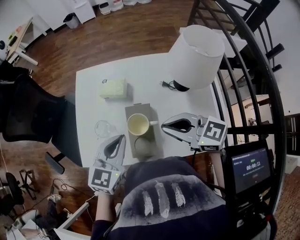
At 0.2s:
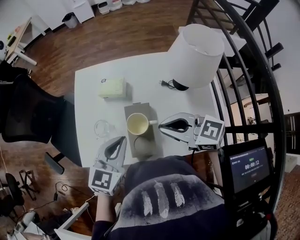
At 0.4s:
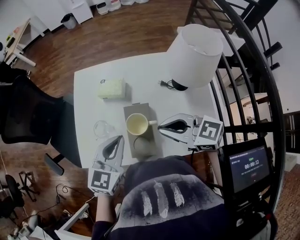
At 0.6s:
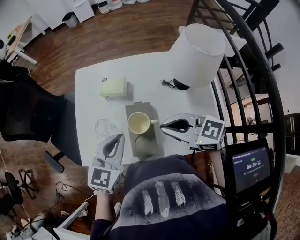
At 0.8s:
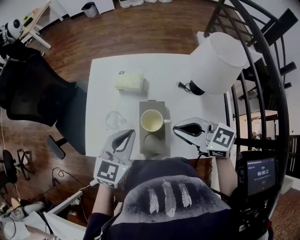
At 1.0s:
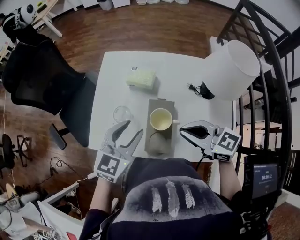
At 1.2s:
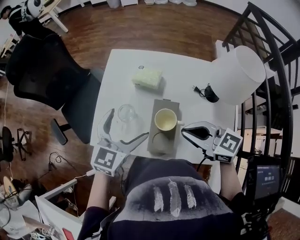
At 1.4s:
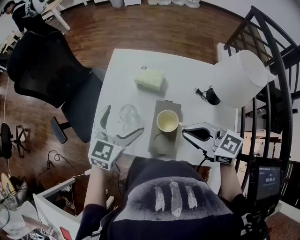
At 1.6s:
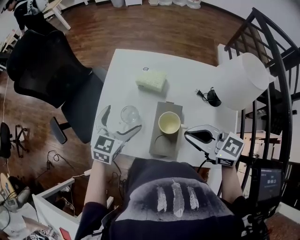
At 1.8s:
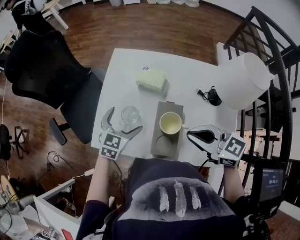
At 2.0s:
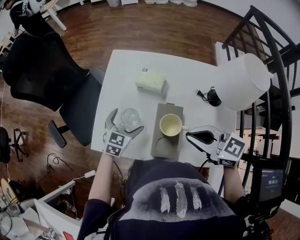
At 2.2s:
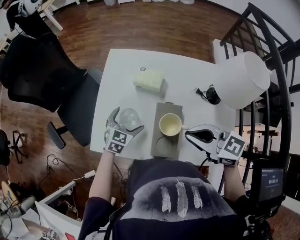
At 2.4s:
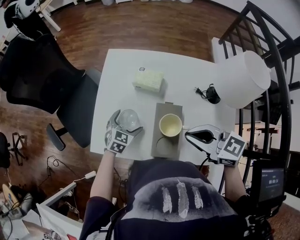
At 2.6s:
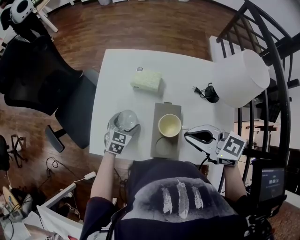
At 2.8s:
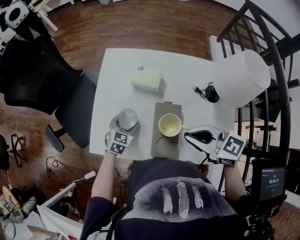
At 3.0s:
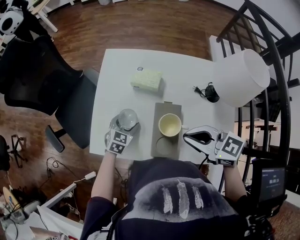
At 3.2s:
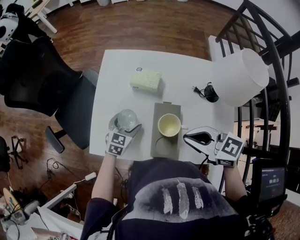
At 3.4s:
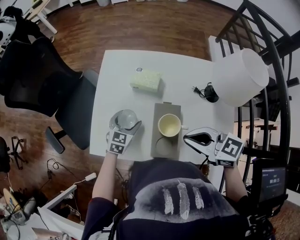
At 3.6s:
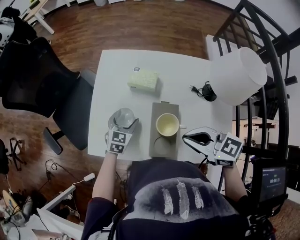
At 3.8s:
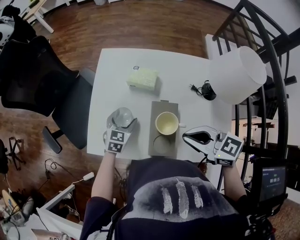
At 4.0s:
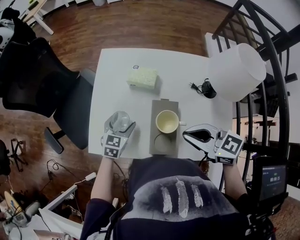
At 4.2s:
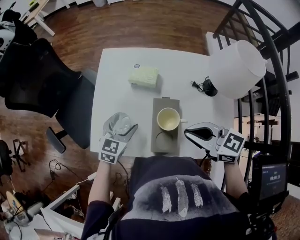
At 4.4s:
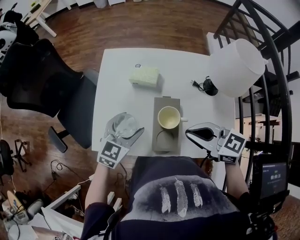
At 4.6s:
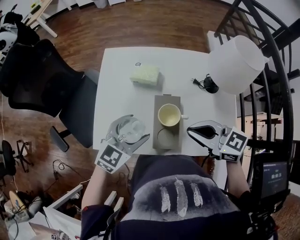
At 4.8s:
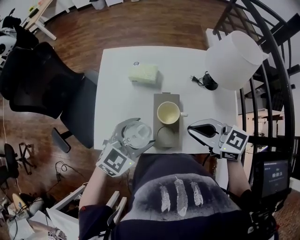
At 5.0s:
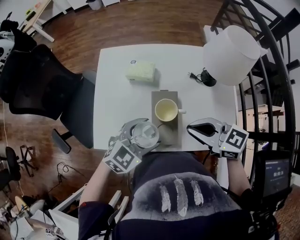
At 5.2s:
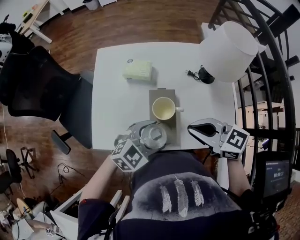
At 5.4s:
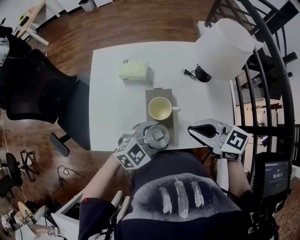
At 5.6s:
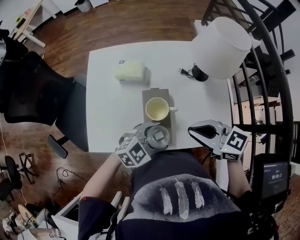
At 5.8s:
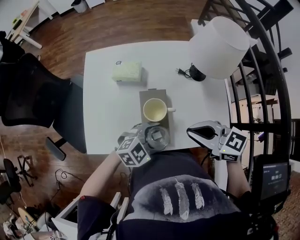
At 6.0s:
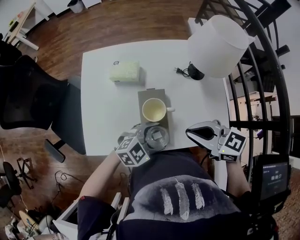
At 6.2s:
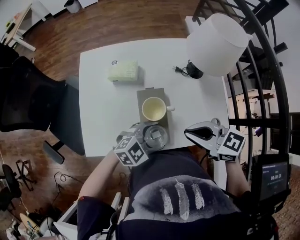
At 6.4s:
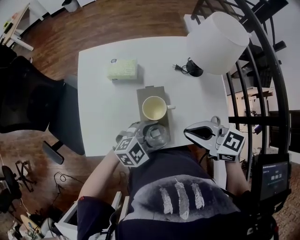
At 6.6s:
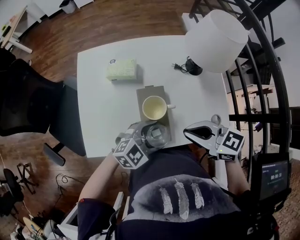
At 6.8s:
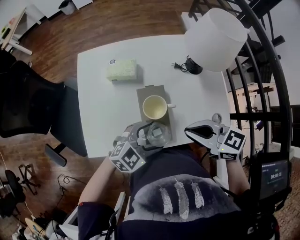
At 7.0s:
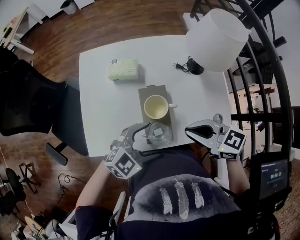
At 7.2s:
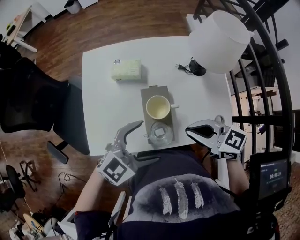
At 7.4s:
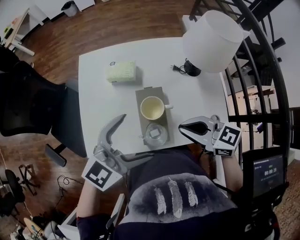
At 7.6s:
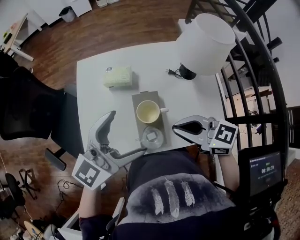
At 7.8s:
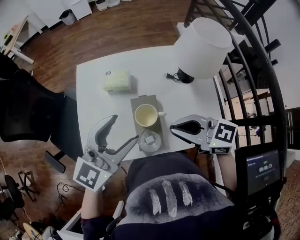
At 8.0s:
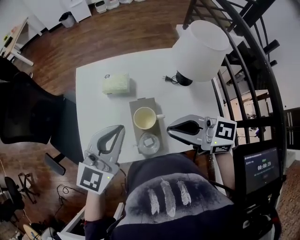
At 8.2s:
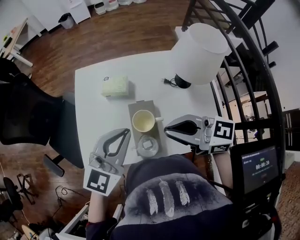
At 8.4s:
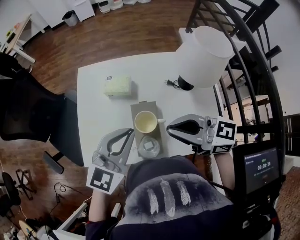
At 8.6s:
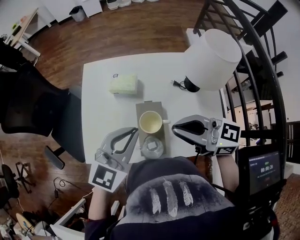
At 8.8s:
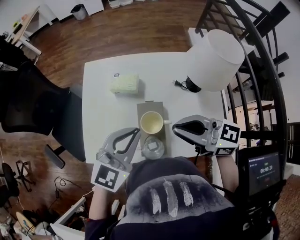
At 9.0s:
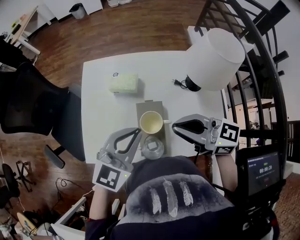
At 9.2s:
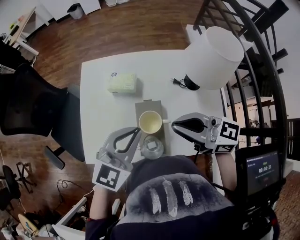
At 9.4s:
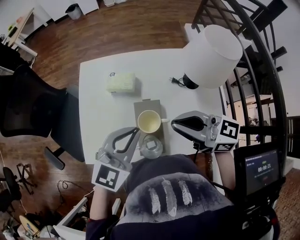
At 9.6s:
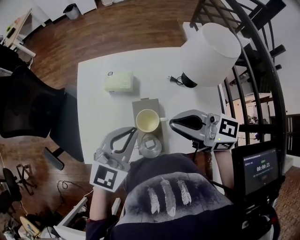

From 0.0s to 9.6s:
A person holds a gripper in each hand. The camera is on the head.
From 0.0s to 1.6s: The left gripper moves to the left, forward and downward, some 15 cm, and opens up.
From 1.6s to 3.2s: The left gripper heads downward, covering some 15 cm.
From 3.2s to 4.8s: The left gripper goes roughly 20 cm upward and backward, and rotates some 30 degrees.
From 4.8s to 6.4s: The left gripper goes approximately 10 cm downward, and swivels about 30 degrees.
From 6.4s to 8.0s: The right gripper goes approximately 10 cm upward; the left gripper shifts approximately 20 cm upward, rotates some 50 degrees, and closes.
From 8.0s to 9.6s: The grippers move only a little.

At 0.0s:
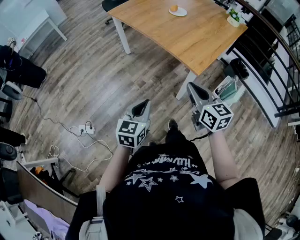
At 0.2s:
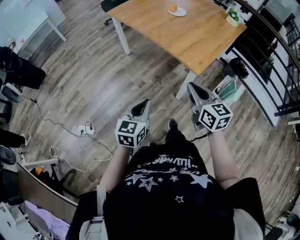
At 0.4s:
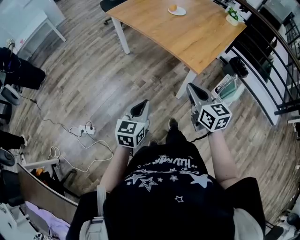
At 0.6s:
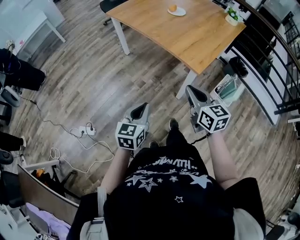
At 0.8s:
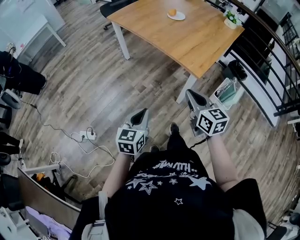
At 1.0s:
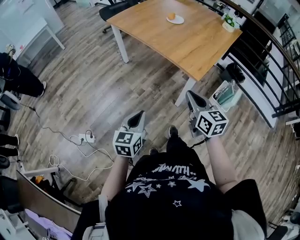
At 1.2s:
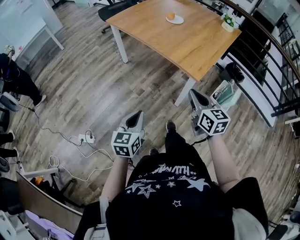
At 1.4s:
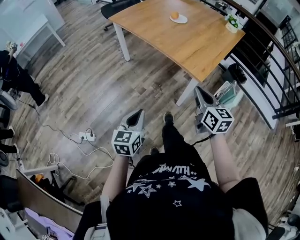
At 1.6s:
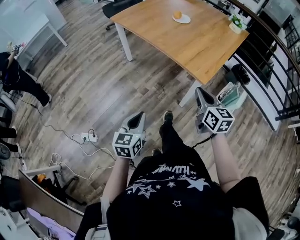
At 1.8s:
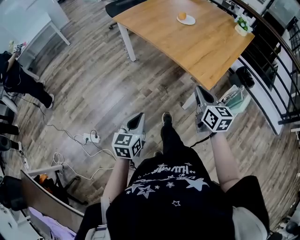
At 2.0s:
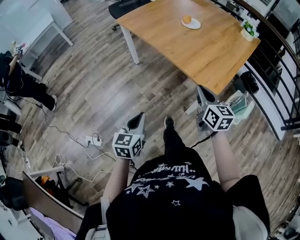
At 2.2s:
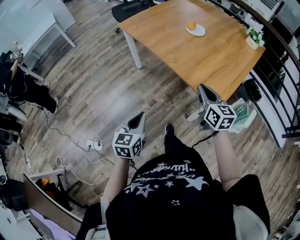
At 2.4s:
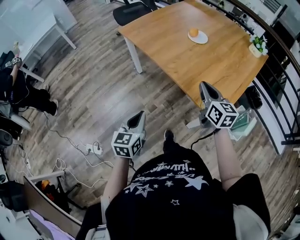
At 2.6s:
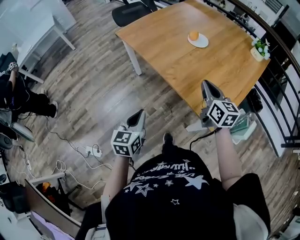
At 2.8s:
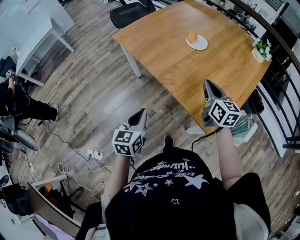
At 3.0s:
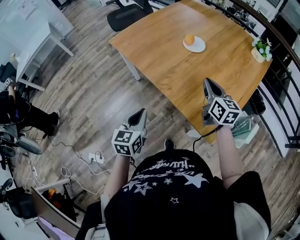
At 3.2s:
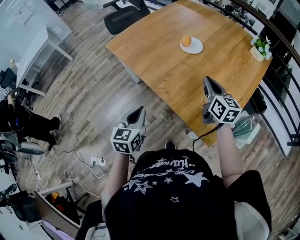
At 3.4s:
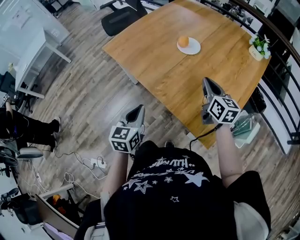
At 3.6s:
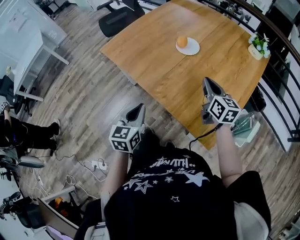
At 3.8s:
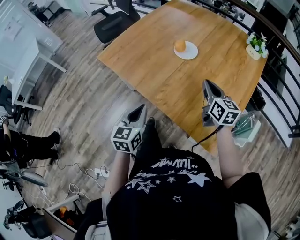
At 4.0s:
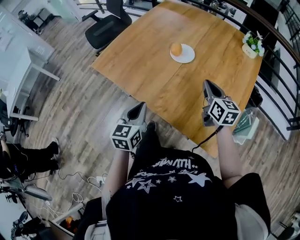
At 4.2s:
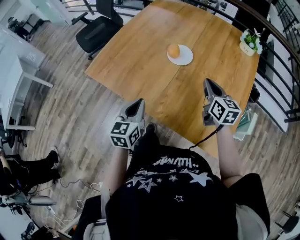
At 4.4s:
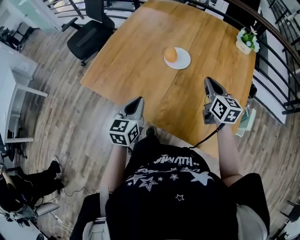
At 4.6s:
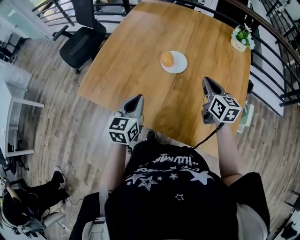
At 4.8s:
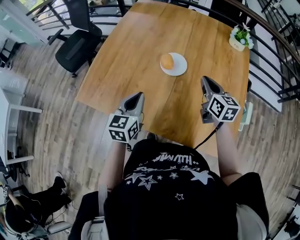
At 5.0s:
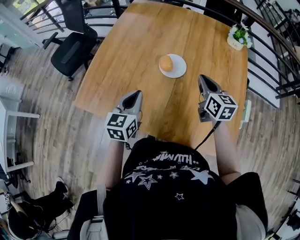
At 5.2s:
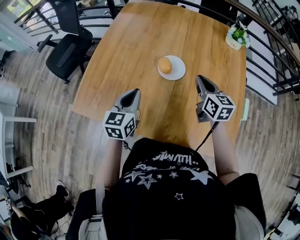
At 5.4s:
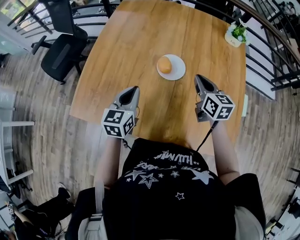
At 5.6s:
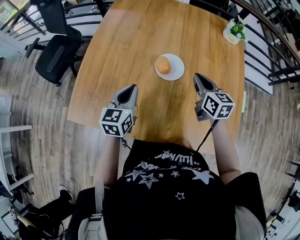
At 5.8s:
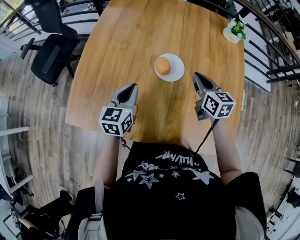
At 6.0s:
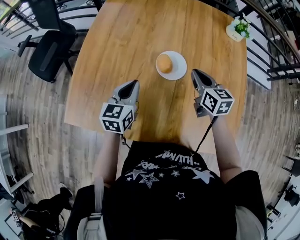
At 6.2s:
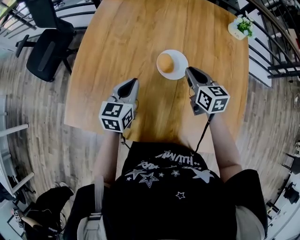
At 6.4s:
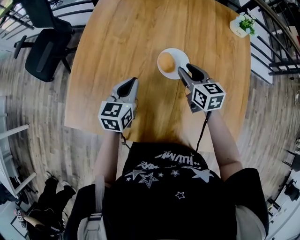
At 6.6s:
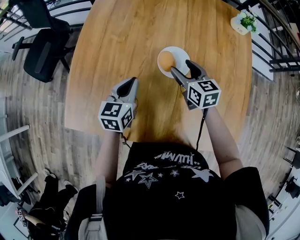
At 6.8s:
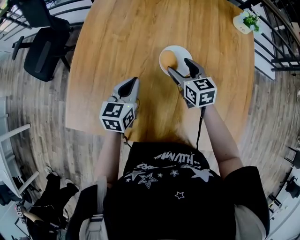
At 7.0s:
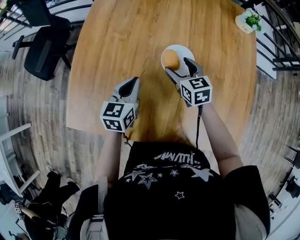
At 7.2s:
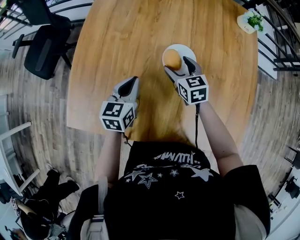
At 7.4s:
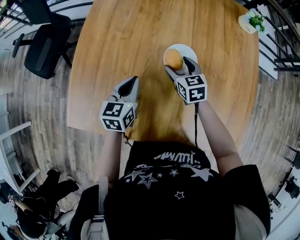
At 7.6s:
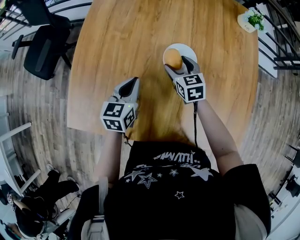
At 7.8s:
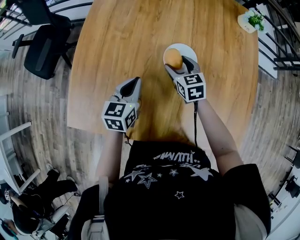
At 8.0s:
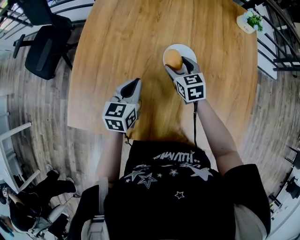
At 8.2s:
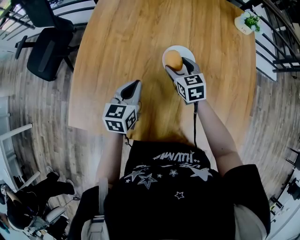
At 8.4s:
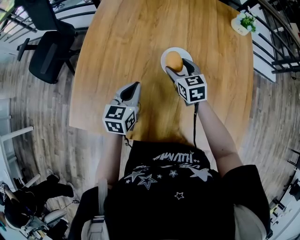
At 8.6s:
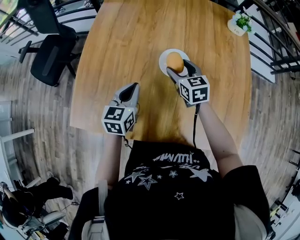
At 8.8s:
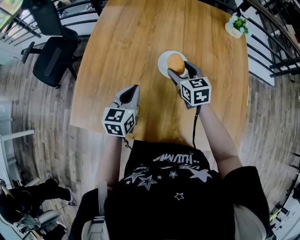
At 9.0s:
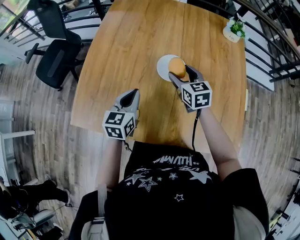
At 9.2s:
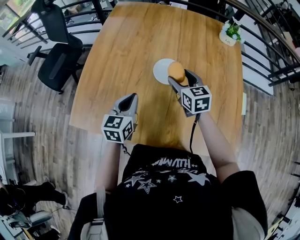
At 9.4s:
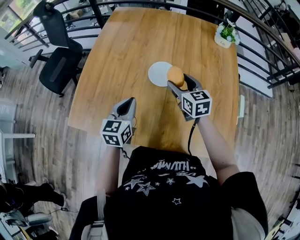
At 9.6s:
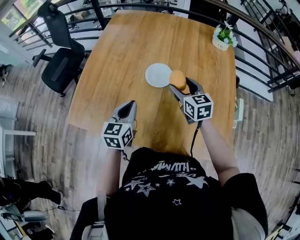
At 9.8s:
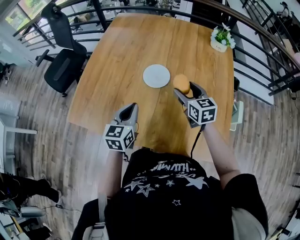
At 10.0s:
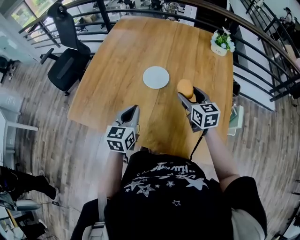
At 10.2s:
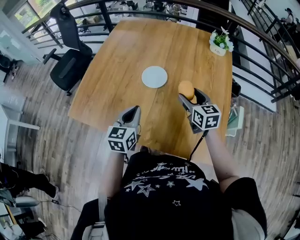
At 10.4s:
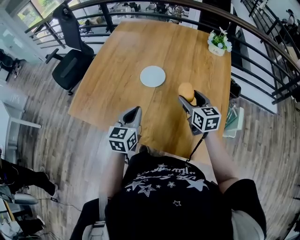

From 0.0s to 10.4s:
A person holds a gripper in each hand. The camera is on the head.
From 0.0s to 1.4s: The left gripper travels to the left by roughly 5 cm.
From 1.4s to 3.0s: The two grippers go about 35 cm forward.
From 3.0s to 4.4s: The right gripper travels forward by roughly 15 cm, and rotates roughly 20 degrees. Meanwhile the left gripper shifts some 25 cm forward, and changes its angle by approximately 20 degrees.
From 4.4s to 6.0s: The right gripper shifts roughly 15 cm forward and to the left. Meanwhile the left gripper is displaced forward by approximately 20 cm.
From 6.0s to 7.4s: The right gripper shifts some 15 cm downward and to the left, and opens up. The left gripper is displaced downward by about 5 cm.
From 7.4s to 9.0s: The left gripper is displaced backward and upward by about 10 cm. The right gripper goes roughly 10 cm upward.
From 9.0s to 10.4s: Both grippers move to the right and backward, roughly 20 cm.

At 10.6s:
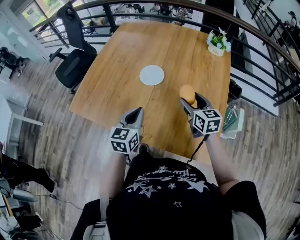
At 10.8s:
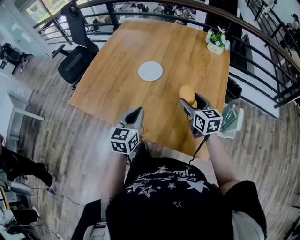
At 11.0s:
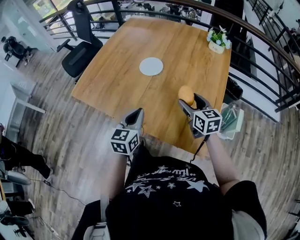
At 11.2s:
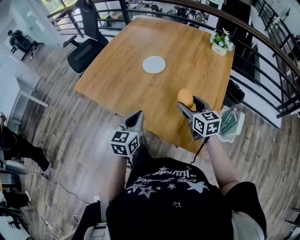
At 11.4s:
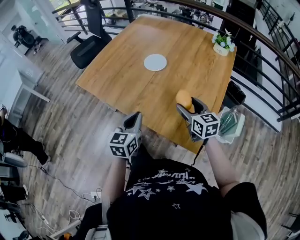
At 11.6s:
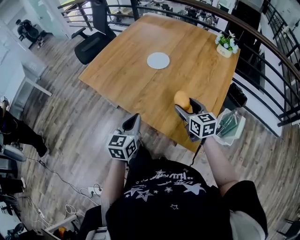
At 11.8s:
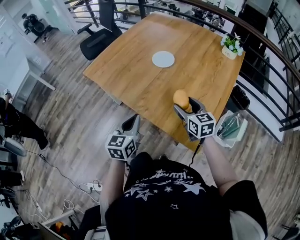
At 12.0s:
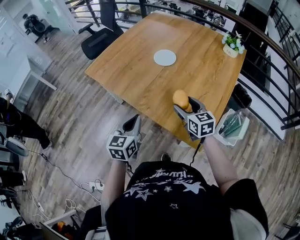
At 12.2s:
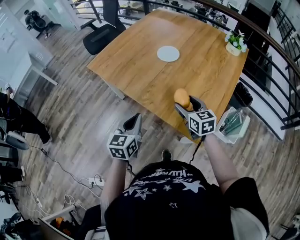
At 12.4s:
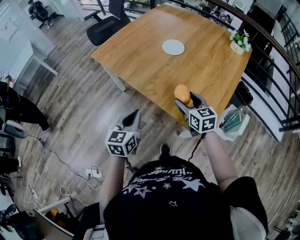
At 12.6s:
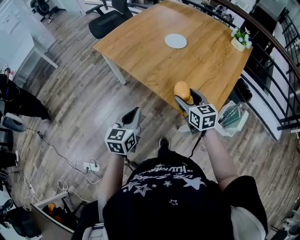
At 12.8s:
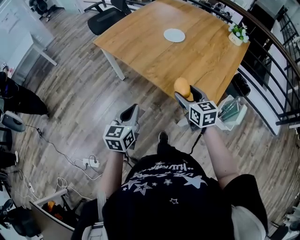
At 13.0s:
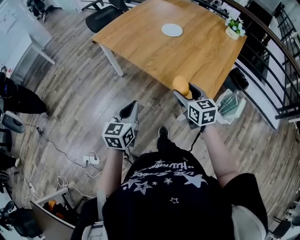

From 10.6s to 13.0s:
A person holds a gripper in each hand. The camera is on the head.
From 10.6s to 11.8s: The left gripper heads backward, covering approximately 15 cm, while the right gripper travels backward by roughly 10 cm, and changes its angle by some 20 degrees.
From 11.8s to 13.0s: The two grippers go roughly 15 cm backward and to the left.

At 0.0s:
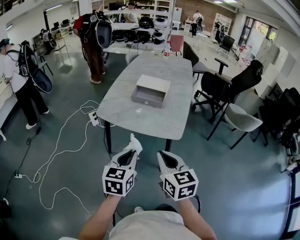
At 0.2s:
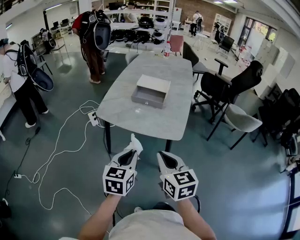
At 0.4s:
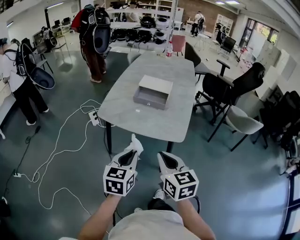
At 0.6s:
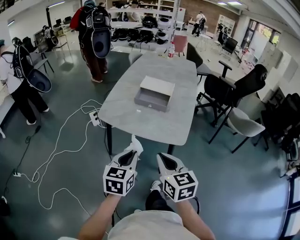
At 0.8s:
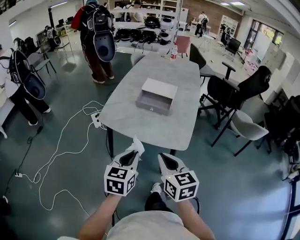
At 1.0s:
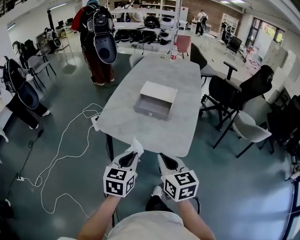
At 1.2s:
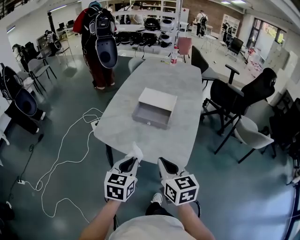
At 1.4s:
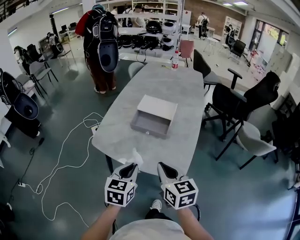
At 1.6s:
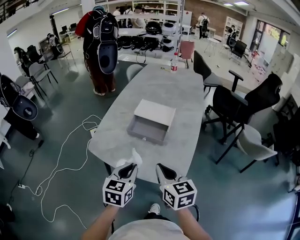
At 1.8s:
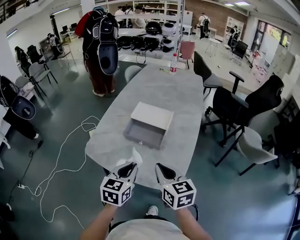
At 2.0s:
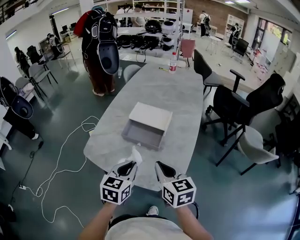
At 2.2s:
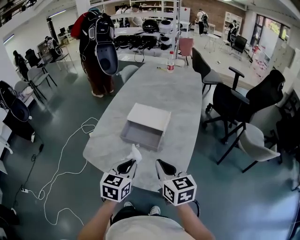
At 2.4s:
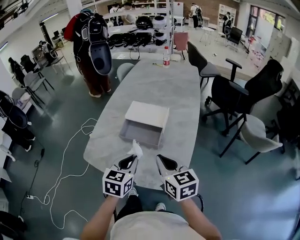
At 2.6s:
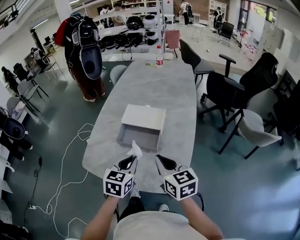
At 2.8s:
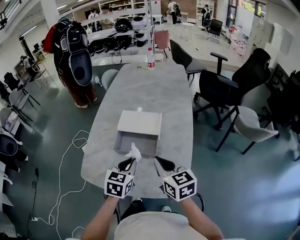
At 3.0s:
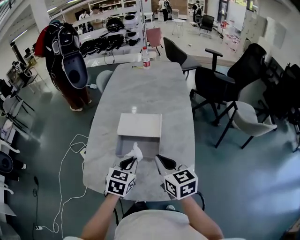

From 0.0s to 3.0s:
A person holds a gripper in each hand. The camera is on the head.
From 0.0s to 1.6s: The grippers both shift forward by some 25 cm.
From 1.6s to 3.0s: The grippers both shift forward by about 15 cm. The left gripper swivels some 20 degrees.
